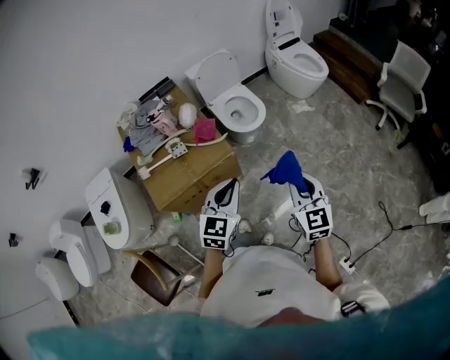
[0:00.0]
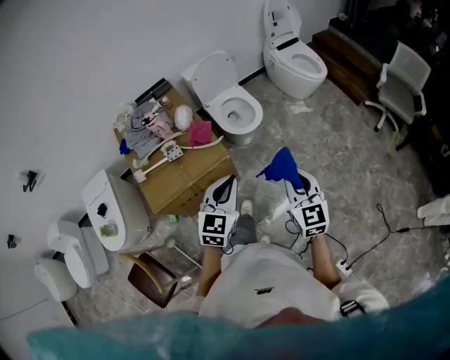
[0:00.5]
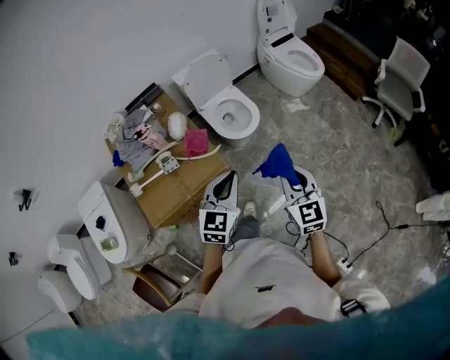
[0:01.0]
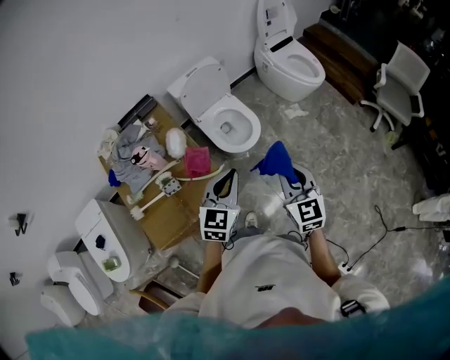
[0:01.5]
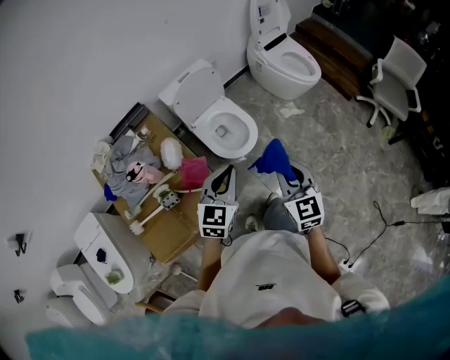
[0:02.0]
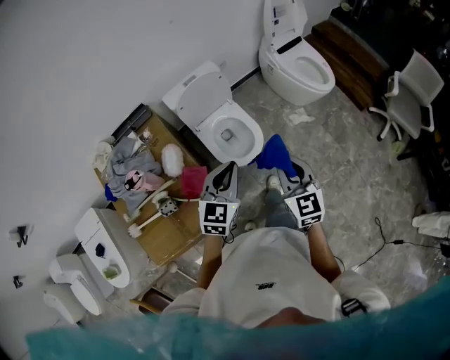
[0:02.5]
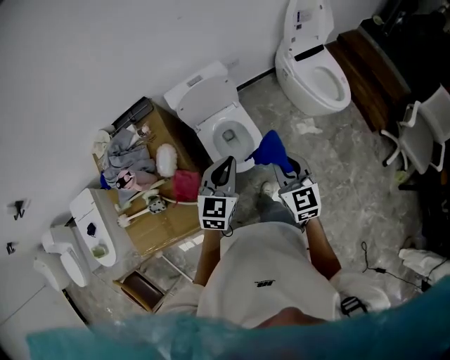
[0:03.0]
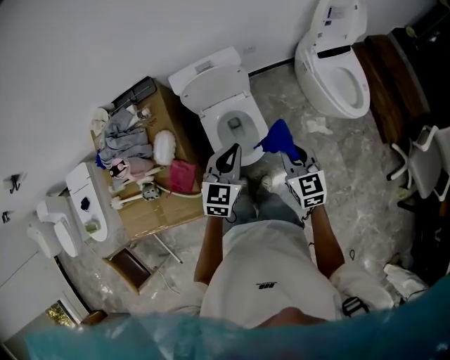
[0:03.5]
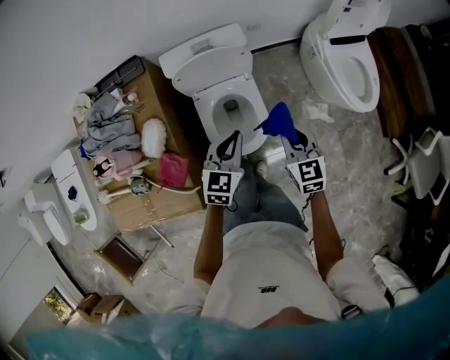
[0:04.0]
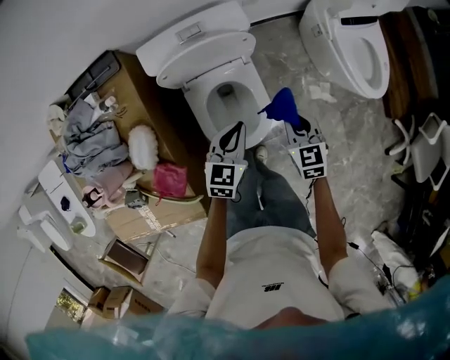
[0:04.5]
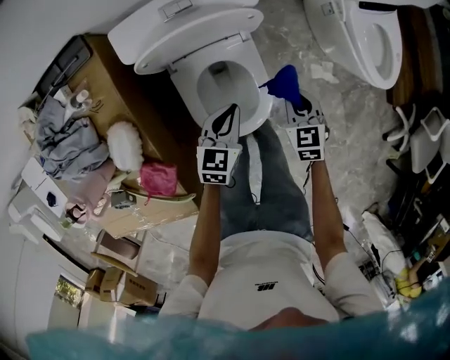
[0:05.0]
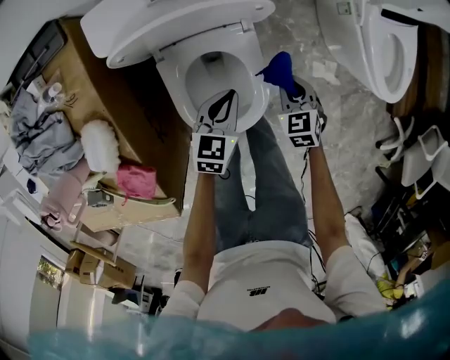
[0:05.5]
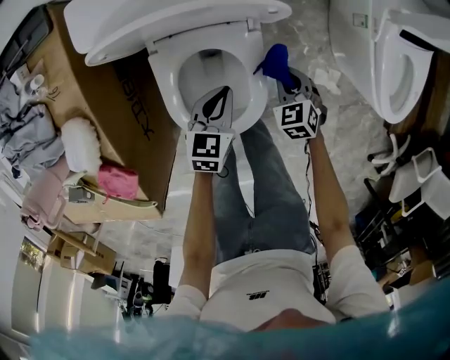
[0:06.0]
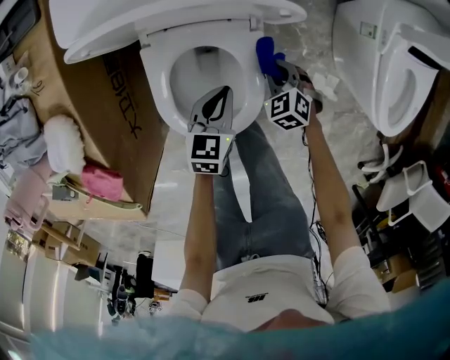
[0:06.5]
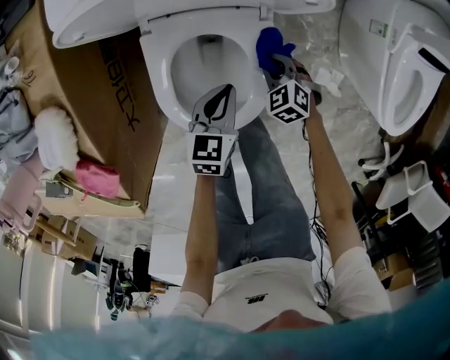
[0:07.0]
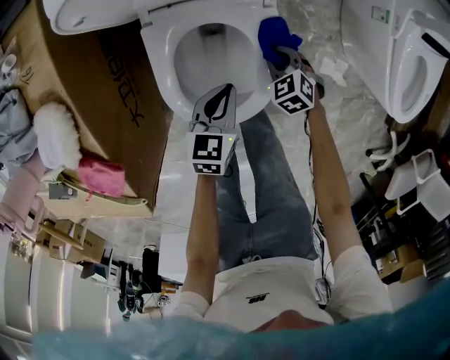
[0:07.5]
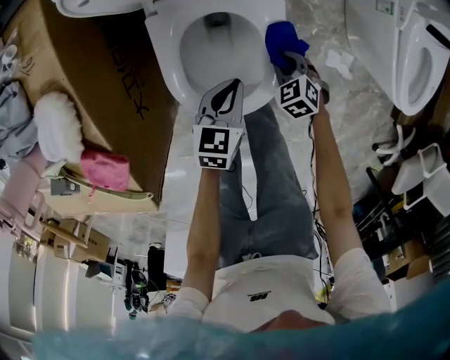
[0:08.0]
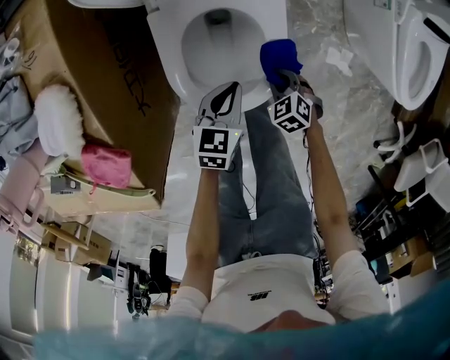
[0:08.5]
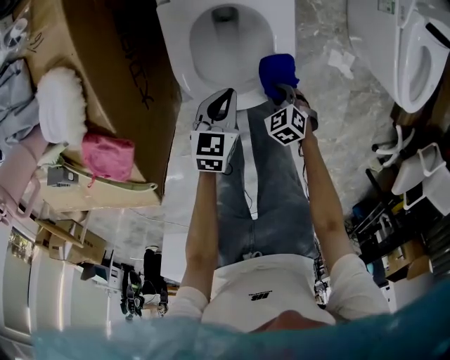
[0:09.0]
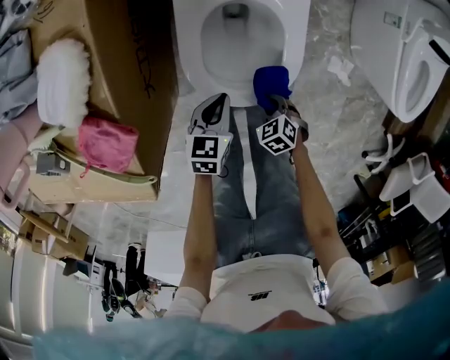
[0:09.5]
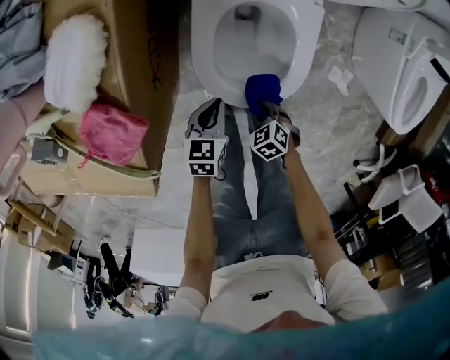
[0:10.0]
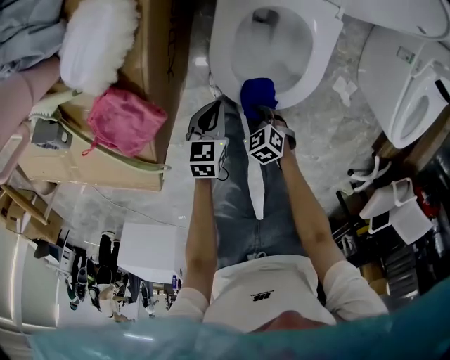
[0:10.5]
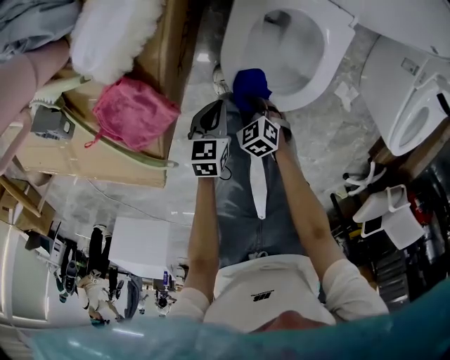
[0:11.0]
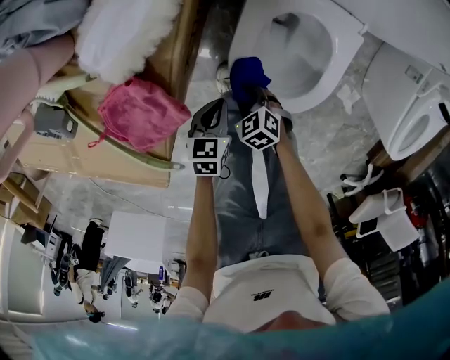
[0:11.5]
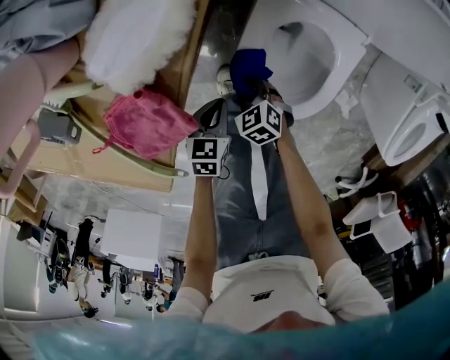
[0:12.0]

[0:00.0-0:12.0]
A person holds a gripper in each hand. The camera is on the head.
0:00.0 to 0:02.0: The two grippers go about 35 cm forward.
0:02.0 to 0:04.0: The two grippers go some 40 cm forward and downward. The left gripper turns by roughly 30 degrees. The right gripper rotates about 30 degrees.
0:04.0 to 0:06.0: The left gripper goes about 35 cm downward, and turns by roughly 20 degrees. Meanwhile the right gripper is displaced downward and forward by roughly 40 cm, and points its fingers approximately 30 degrees further downward.
0:06.0 to 0:08.0: The right gripper is displaced downward, backward and to the left by approximately 15 cm. Meanwhile the left gripper shifts about 10 cm backward and downward.
0:08.0 to 0:10.0: The right gripper moves approximately 25 cm. Meanwhile the left gripper ends up roughly 15 cm from where it was.
0:10.0 to 0:12.0: The right gripper changes place by roughly 20 cm. Meanwhile the left gripper moves about 10 cm.

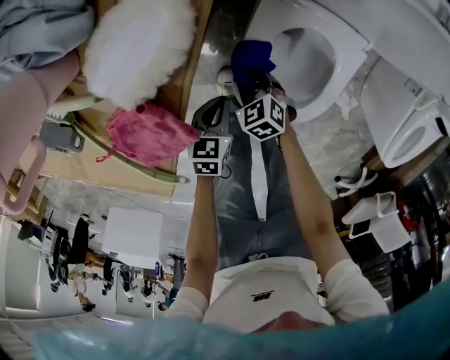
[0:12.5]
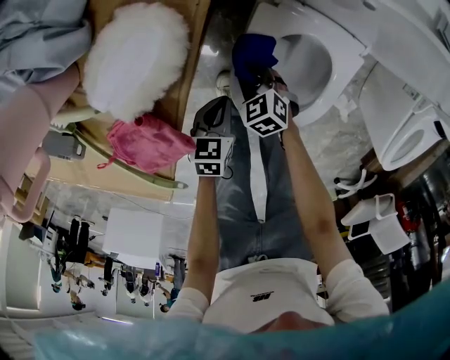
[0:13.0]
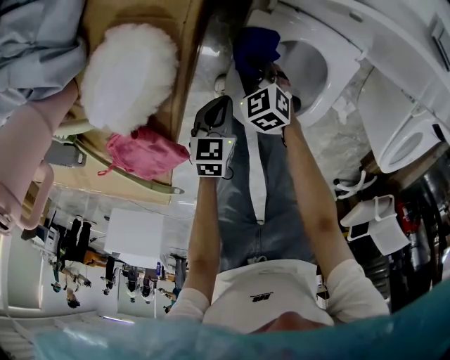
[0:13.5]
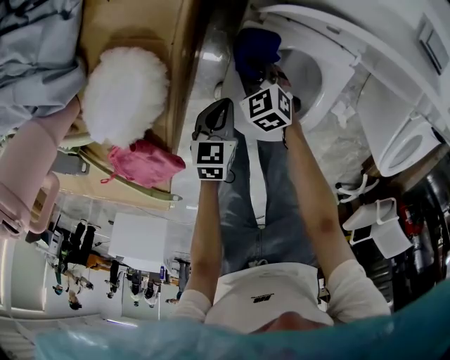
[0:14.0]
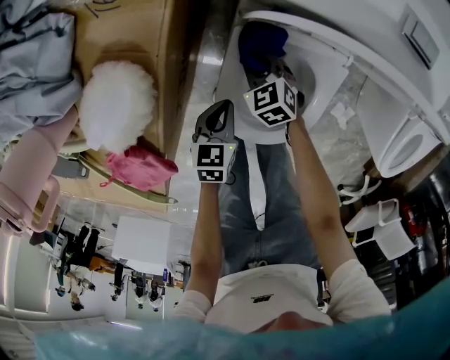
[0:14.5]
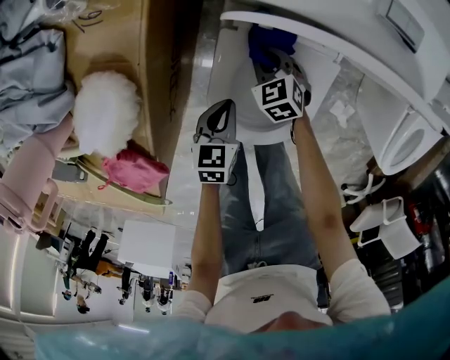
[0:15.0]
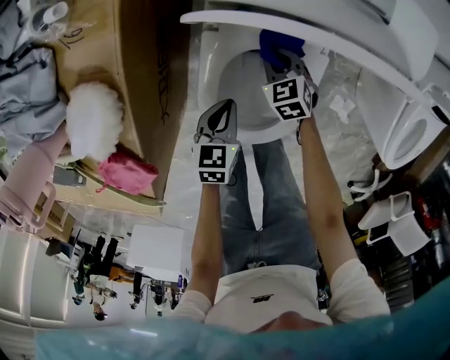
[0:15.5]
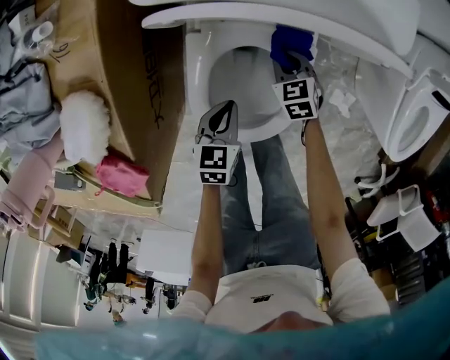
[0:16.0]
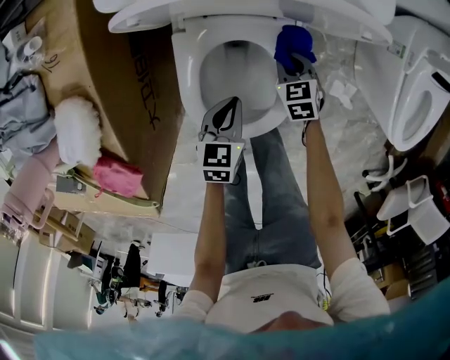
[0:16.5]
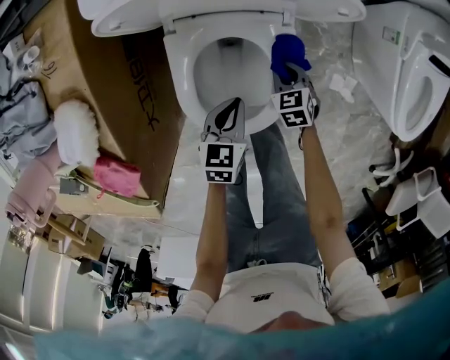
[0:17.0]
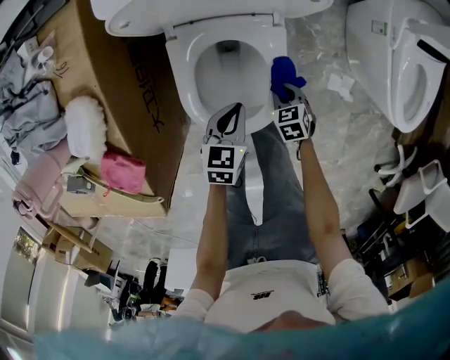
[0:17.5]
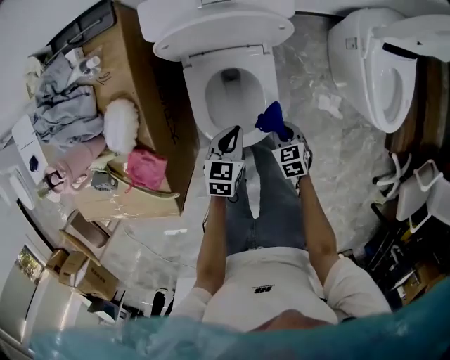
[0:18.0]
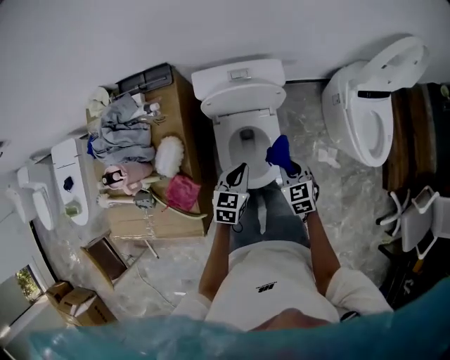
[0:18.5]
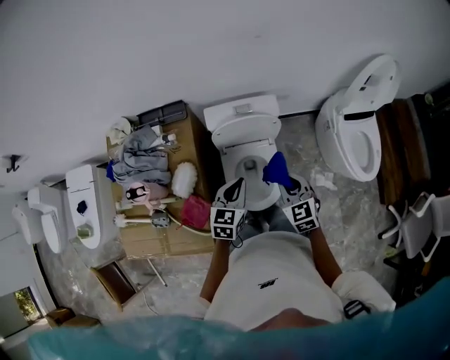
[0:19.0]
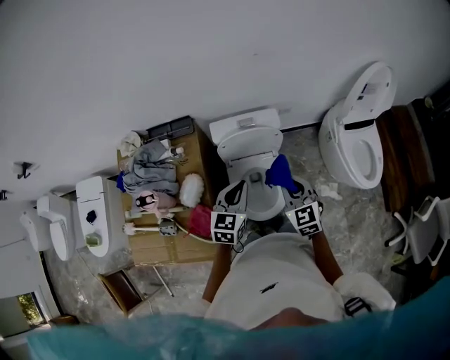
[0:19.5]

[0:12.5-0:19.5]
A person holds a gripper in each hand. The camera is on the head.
0:12.5 to 0:14.5: The left gripper travels forward and to the right by roughly 10 cm; the right gripper moves forward and to the right, some 15 cm.
0:14.5 to 0:16.0: The left gripper travels to the right by about 10 cm; the right gripper heads to the right, covering approximately 20 cm, and rotates some 20 degrees.
0:16.0 to 0:17.5: The left gripper heads to the right, covering some 5 cm; the right gripper goes approximately 15 cm backward and to the right.
0:17.5 to 0:19.5: The grippers both shift upward by approximately 60 cm. The right gripper angles its fingers upward, by some 40 degrees. Meanwhile the left gripper rotates roughly 30 degrees.

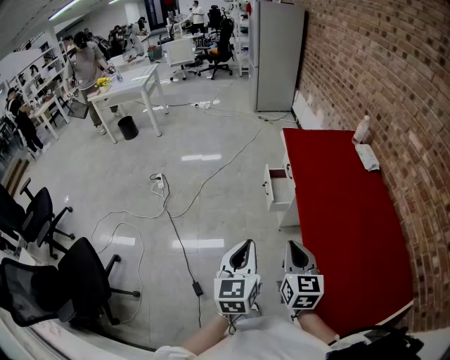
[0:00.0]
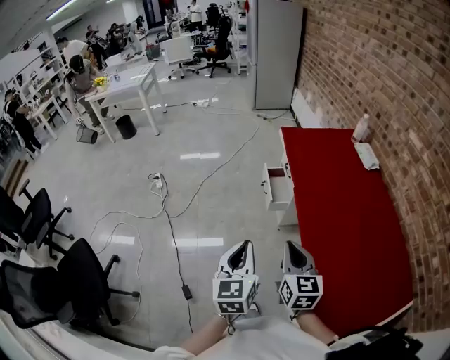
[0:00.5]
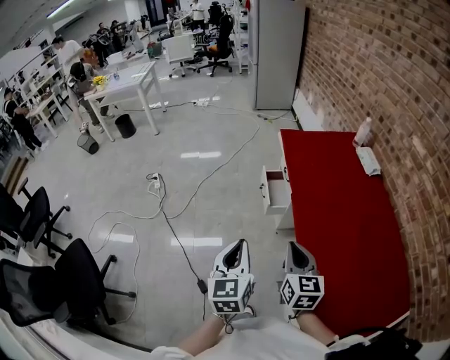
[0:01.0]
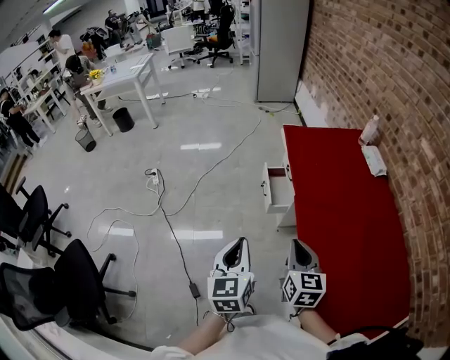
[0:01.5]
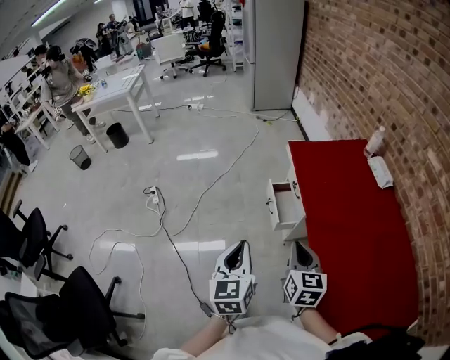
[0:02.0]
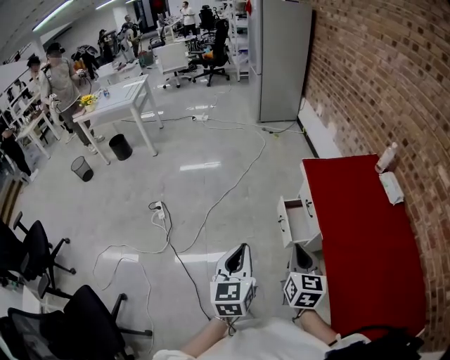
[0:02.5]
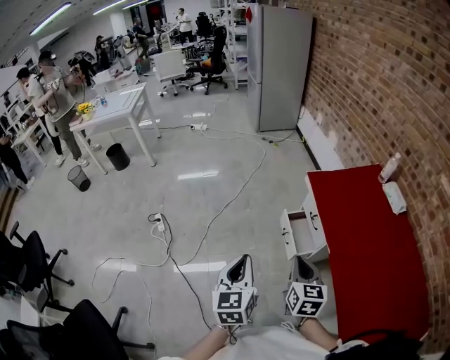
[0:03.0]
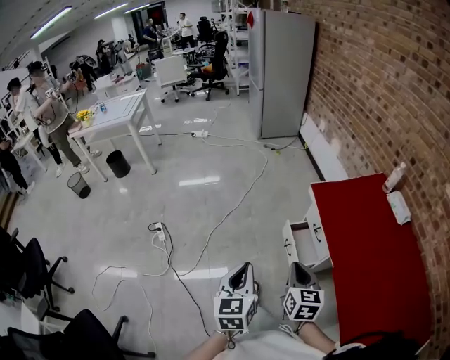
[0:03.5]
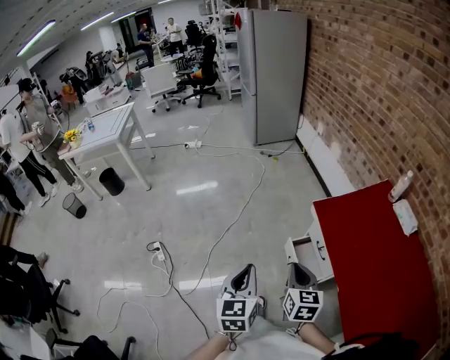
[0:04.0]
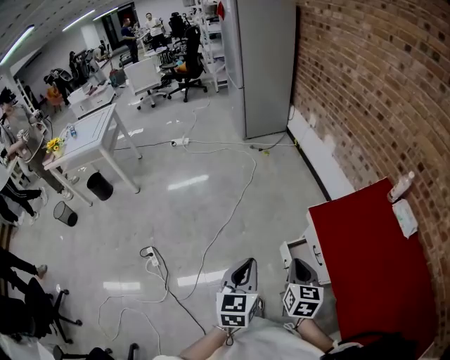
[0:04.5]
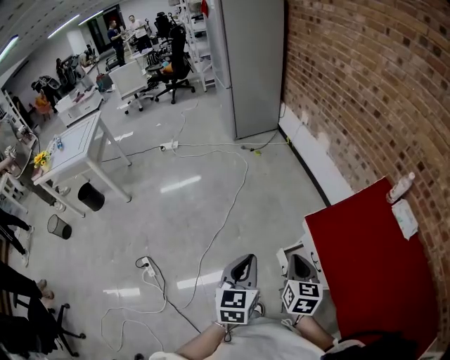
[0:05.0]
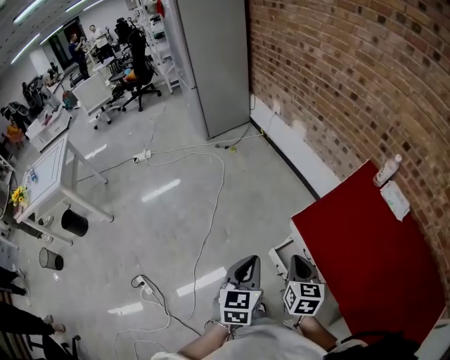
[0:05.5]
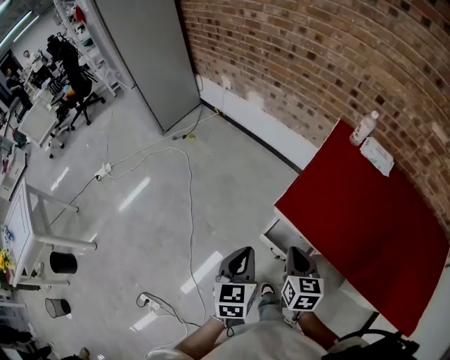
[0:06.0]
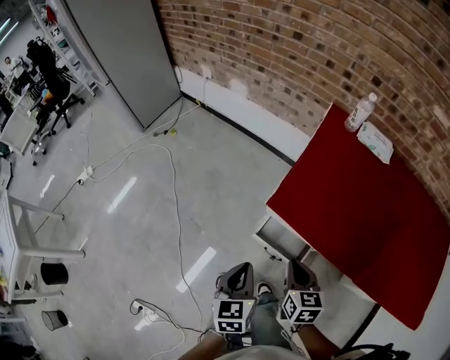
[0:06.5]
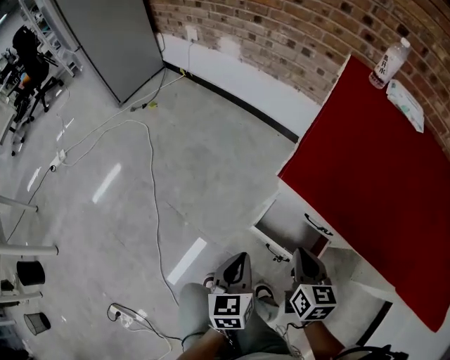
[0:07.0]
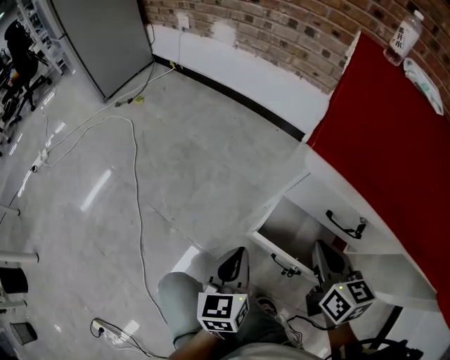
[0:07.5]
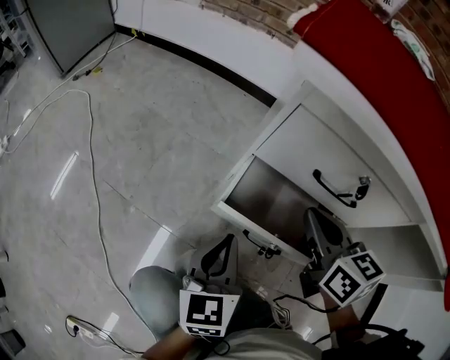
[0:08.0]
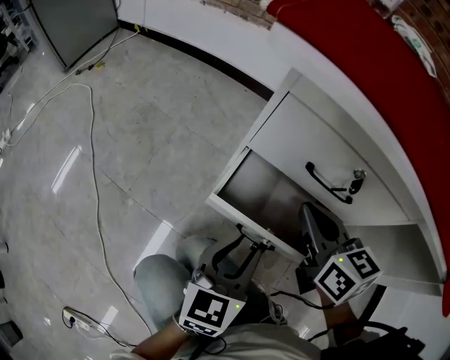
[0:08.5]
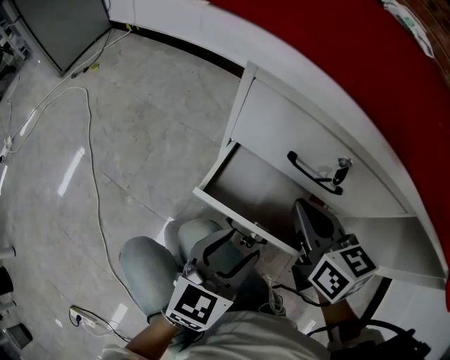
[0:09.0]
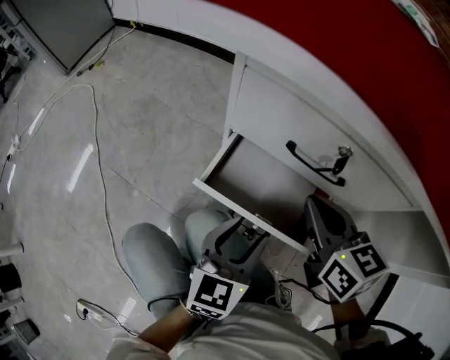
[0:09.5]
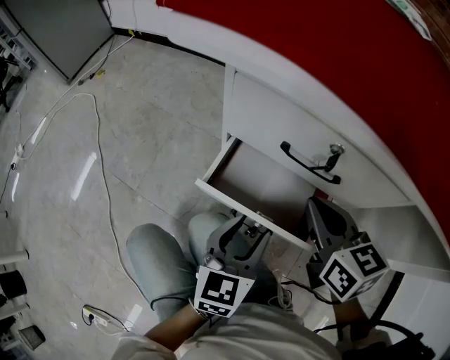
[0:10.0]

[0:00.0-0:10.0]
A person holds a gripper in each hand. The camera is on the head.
0:00.0 to 0:02.0: Both grippers travel together forward, roughly 20 cm.
0:02.0 to 0:04.0: Both grippers travel together forward and to the left, roughly 30 cm.
0:04.0 to 0:06.0: The right gripper changes place by roughly 20 cm, and changes its angle by roughly 40 degrees. The left gripper ends up roughly 30 cm from where it was, and rotates roughly 40 degrees.
0:06.0 to 0:08.0: The two grippers go approximately 40 cm downward.
0:08.0 to 0:10.0: The right gripper shifts approximately 5 cm to the right, while the left gripper goes about 10 cm to the right, and opens.
